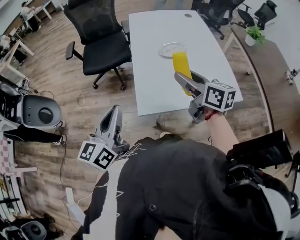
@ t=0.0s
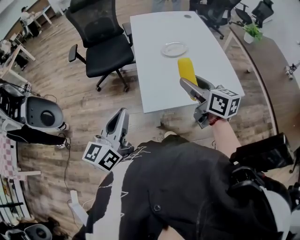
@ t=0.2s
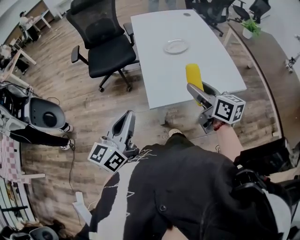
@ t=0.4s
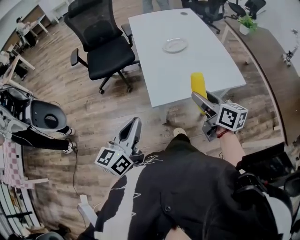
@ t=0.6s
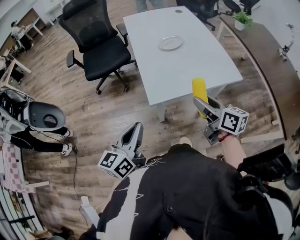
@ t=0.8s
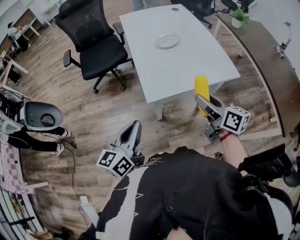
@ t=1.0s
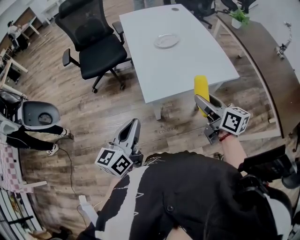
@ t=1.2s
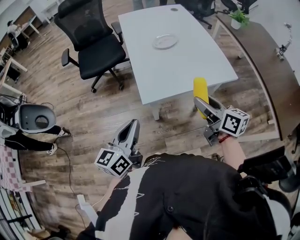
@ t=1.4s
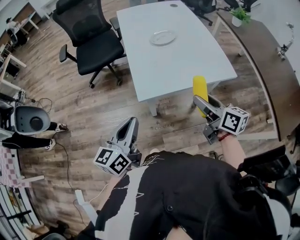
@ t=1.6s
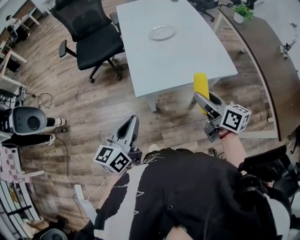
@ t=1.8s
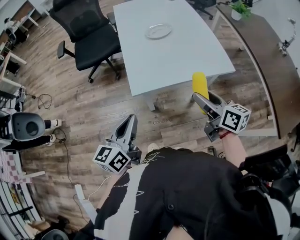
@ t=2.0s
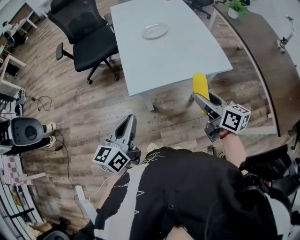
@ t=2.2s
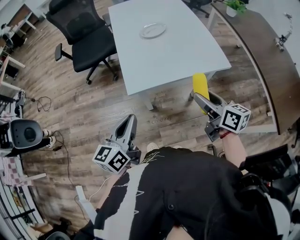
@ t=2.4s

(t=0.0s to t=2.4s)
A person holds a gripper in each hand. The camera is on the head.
t=0.0s - t=1.2s: The left gripper goes approximately 10 cm backward and downward; the right gripper goes approximately 15 cm backward.
t=1.2s - t=2.4s: Both grippers move to the right, roughly 5 cm.

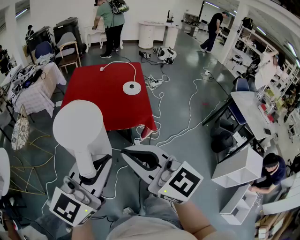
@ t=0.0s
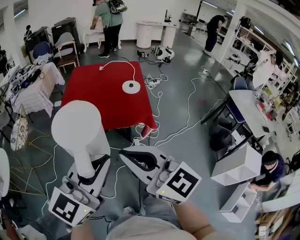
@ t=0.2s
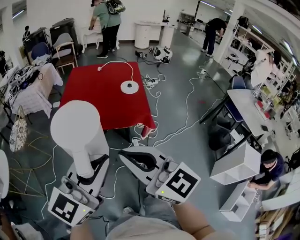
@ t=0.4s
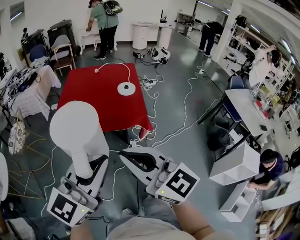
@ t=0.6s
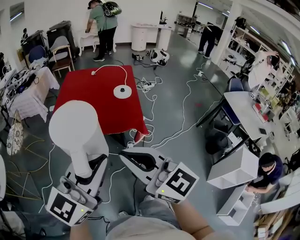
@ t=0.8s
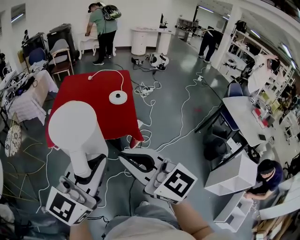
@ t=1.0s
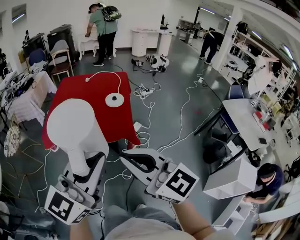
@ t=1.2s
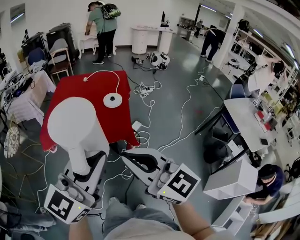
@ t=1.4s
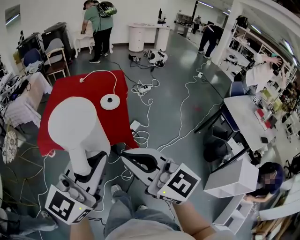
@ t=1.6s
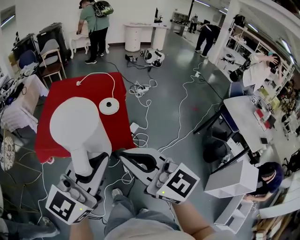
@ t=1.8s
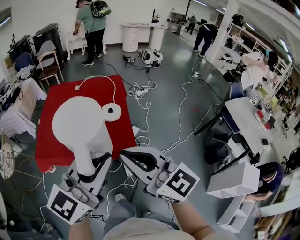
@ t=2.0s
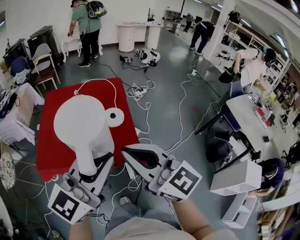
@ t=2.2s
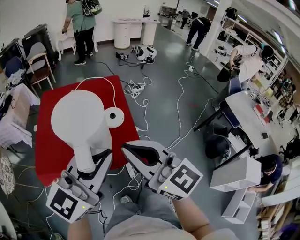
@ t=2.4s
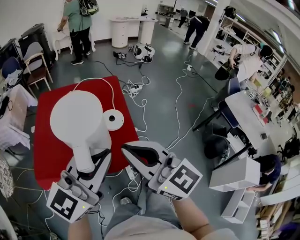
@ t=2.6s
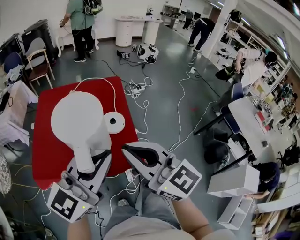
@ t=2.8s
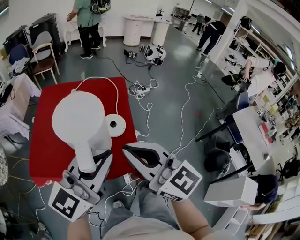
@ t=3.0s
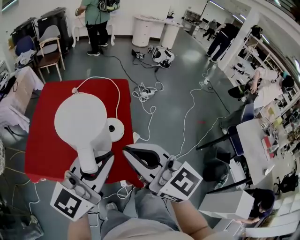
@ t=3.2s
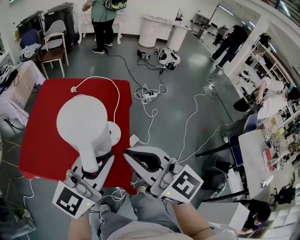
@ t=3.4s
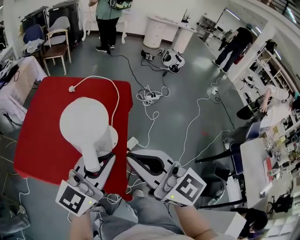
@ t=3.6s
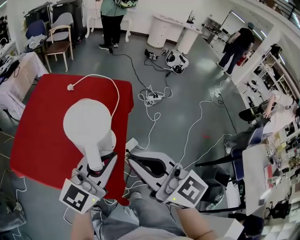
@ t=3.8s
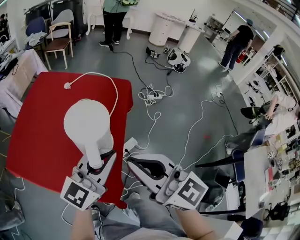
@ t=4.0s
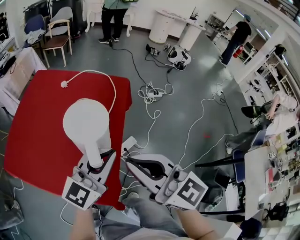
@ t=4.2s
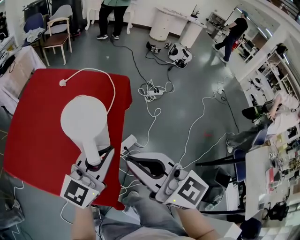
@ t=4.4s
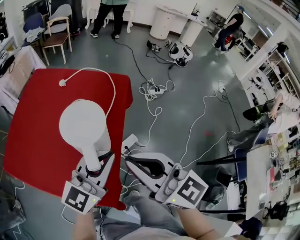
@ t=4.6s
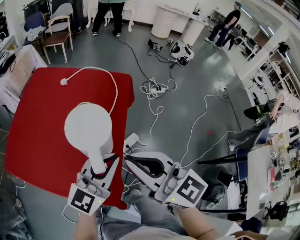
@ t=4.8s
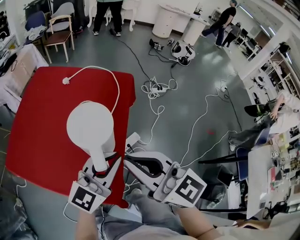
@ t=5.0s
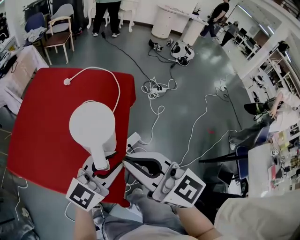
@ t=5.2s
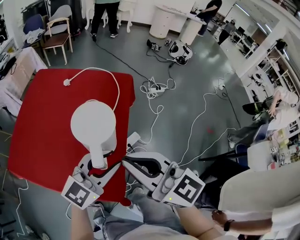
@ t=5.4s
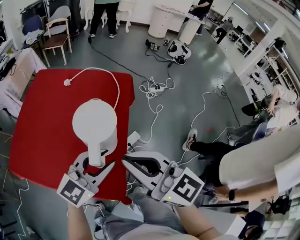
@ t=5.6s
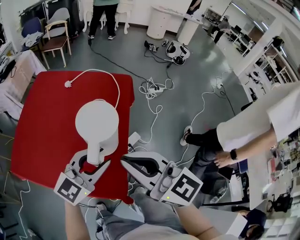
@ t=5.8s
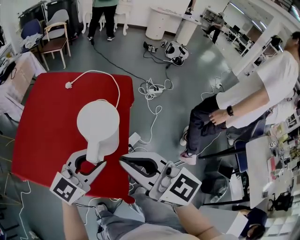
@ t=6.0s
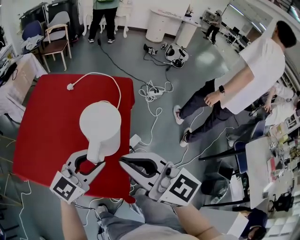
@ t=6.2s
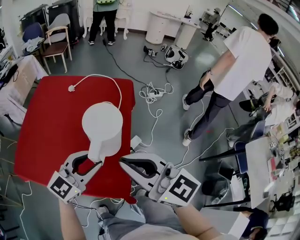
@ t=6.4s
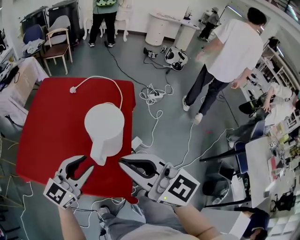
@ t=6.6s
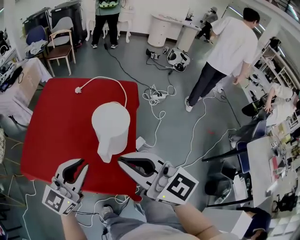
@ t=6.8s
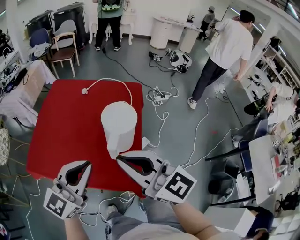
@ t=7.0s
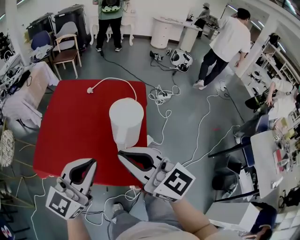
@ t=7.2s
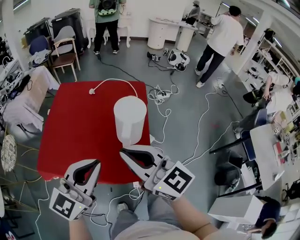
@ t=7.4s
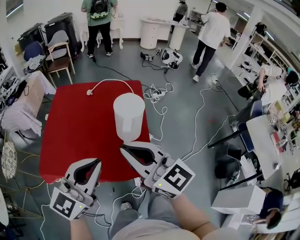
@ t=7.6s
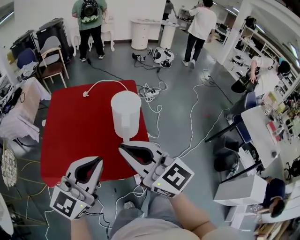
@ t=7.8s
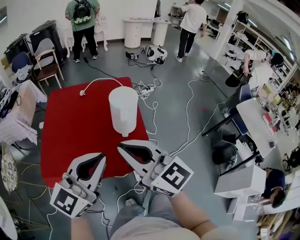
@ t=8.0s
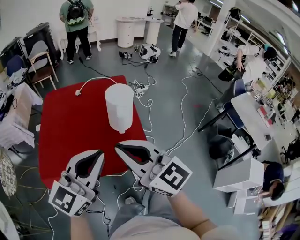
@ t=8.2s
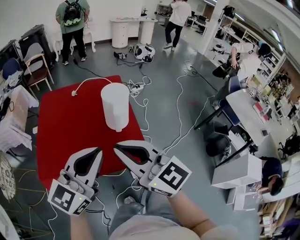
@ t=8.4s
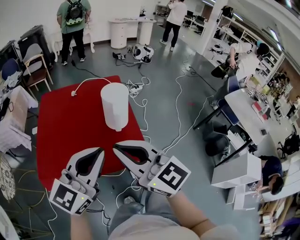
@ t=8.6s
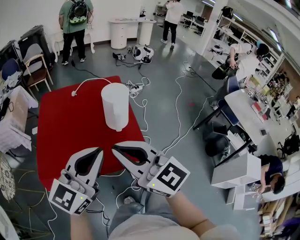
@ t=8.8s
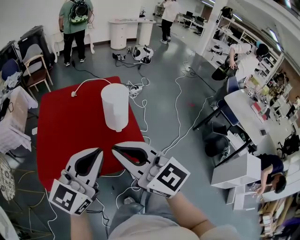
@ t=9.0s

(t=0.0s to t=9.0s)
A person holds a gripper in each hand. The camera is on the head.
t=0.0s - t=1.6s: The two grippers go approximately 20 cm to the right and forward.
t=1.6s - t=3.0s: Both grippers travel together forward, some 25 cm.
t=3.0s - t=4.4s: The right gripper shifts approximately 20 cm forward, to the right and downward. The left gripper moves forward, downward and to the right, about 30 cm.
t=4.4s - t=6.0s: The grippers both shift to the left by some 5 cm. The left gripper opens its fingers.
t=6.0s - t=7.6s: The right gripper goes approximately 15 cm to the left, backward and upward; the left gripper goes some 25 cm to the left, upward and backward, and closes its fingers.
t=7.6s - t=9.0s: The left gripper ends up about 5 cm from where it was; the right gripper moves backward, about 10 cm.

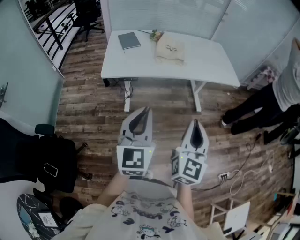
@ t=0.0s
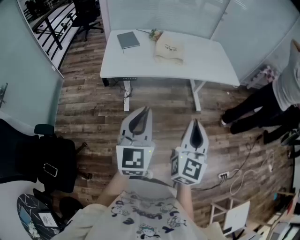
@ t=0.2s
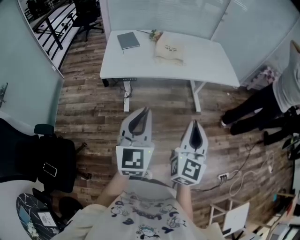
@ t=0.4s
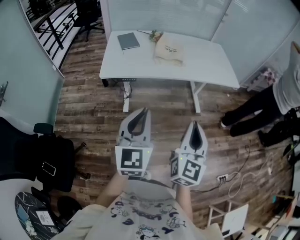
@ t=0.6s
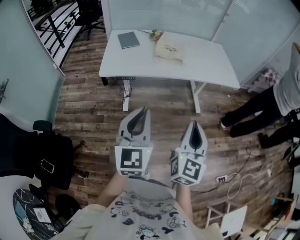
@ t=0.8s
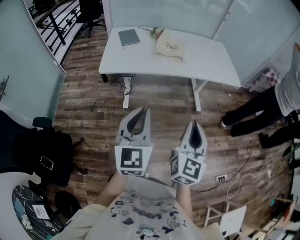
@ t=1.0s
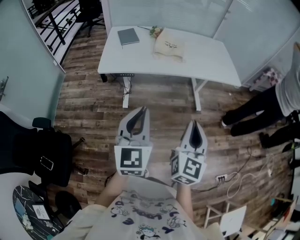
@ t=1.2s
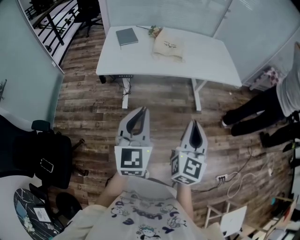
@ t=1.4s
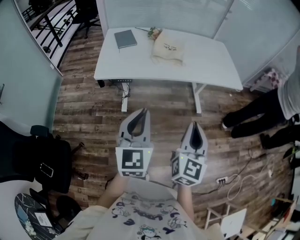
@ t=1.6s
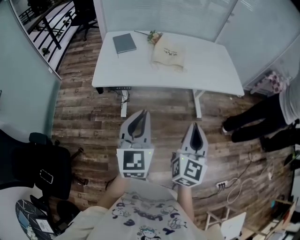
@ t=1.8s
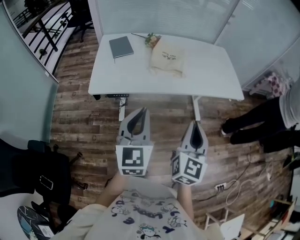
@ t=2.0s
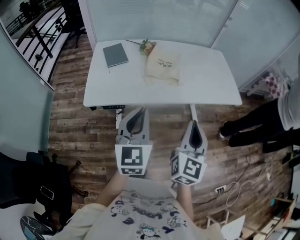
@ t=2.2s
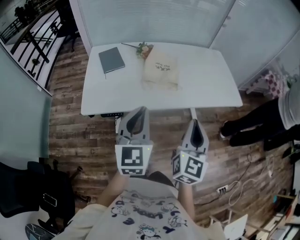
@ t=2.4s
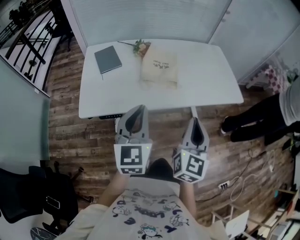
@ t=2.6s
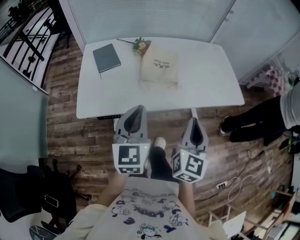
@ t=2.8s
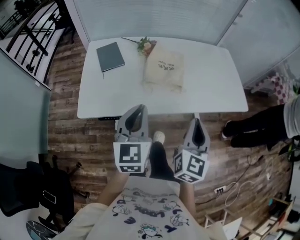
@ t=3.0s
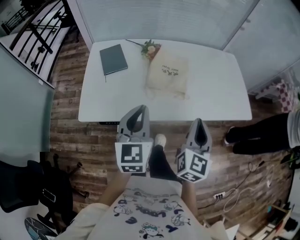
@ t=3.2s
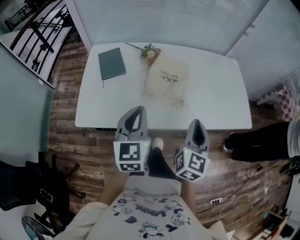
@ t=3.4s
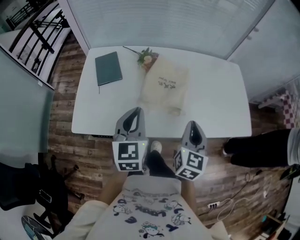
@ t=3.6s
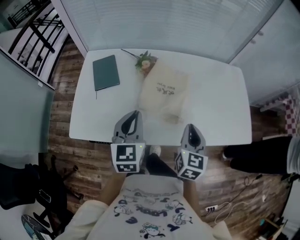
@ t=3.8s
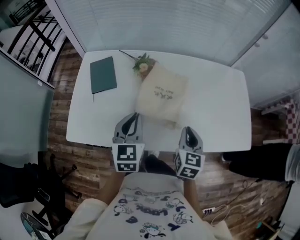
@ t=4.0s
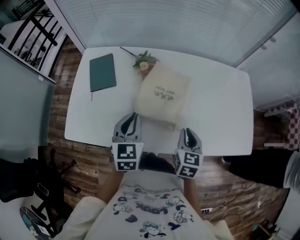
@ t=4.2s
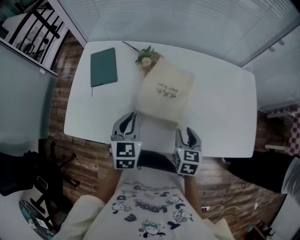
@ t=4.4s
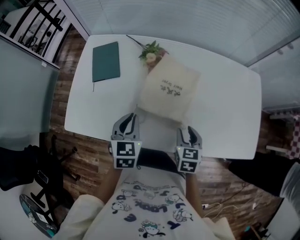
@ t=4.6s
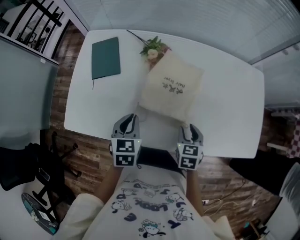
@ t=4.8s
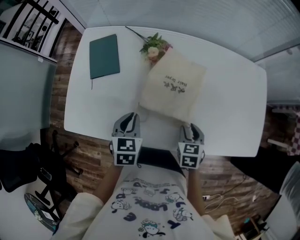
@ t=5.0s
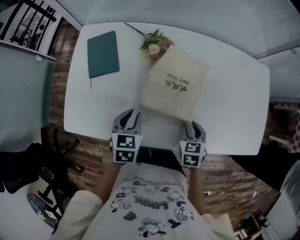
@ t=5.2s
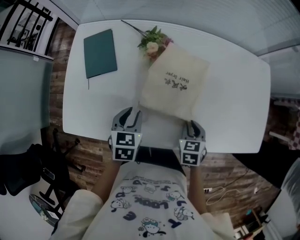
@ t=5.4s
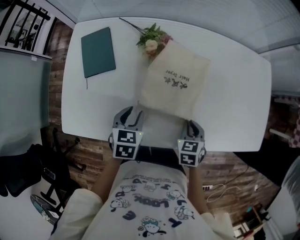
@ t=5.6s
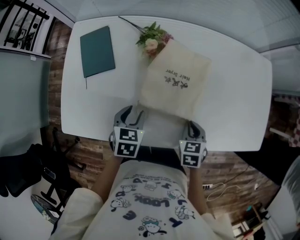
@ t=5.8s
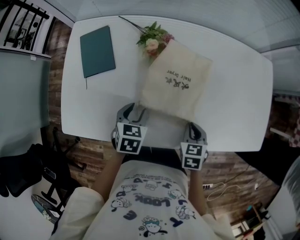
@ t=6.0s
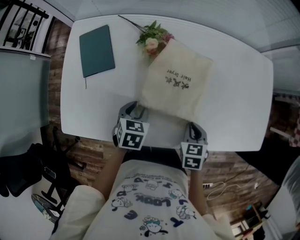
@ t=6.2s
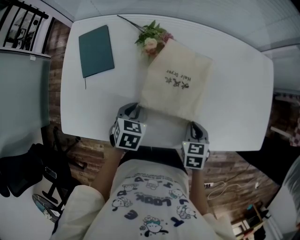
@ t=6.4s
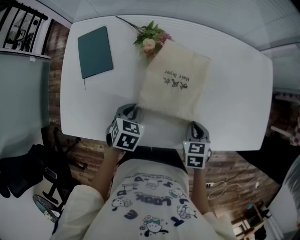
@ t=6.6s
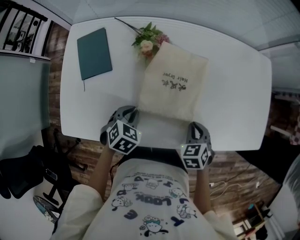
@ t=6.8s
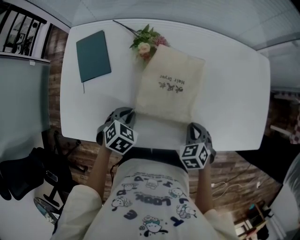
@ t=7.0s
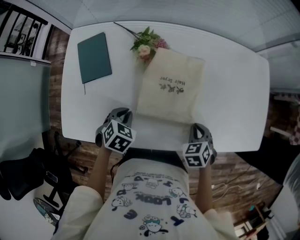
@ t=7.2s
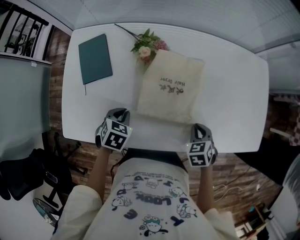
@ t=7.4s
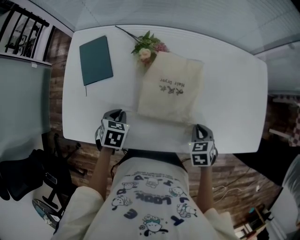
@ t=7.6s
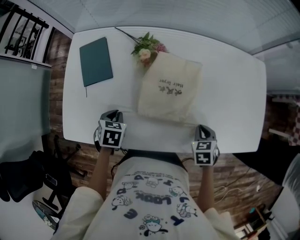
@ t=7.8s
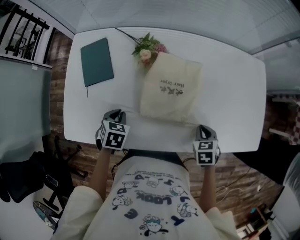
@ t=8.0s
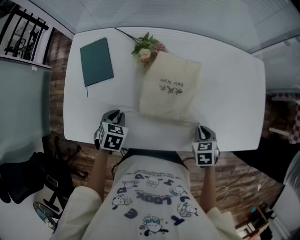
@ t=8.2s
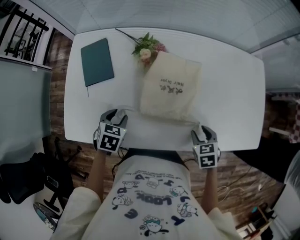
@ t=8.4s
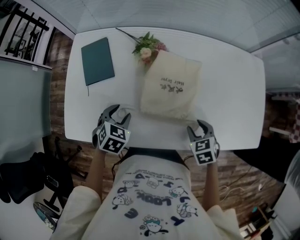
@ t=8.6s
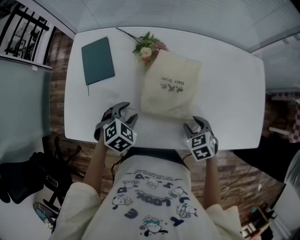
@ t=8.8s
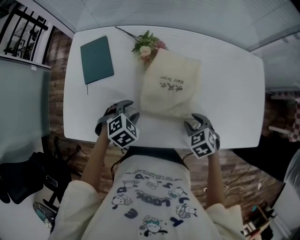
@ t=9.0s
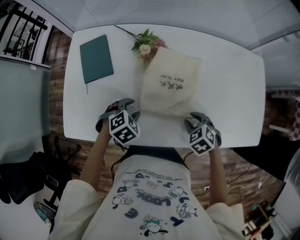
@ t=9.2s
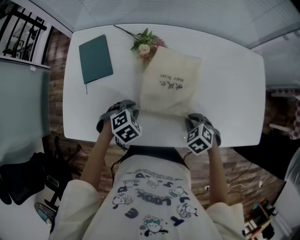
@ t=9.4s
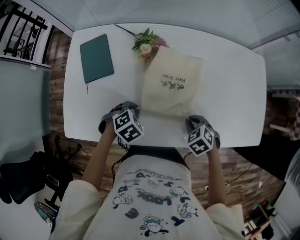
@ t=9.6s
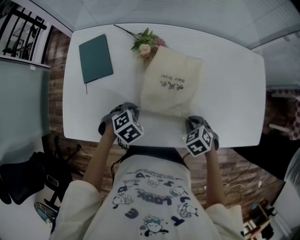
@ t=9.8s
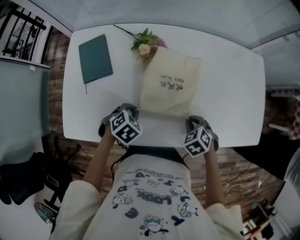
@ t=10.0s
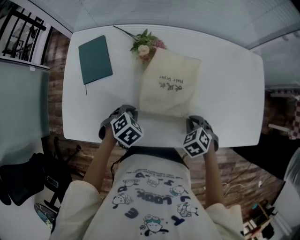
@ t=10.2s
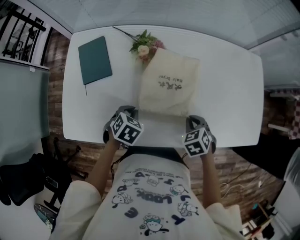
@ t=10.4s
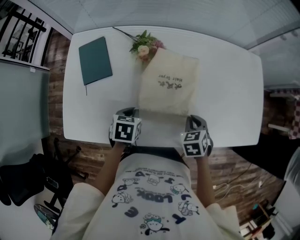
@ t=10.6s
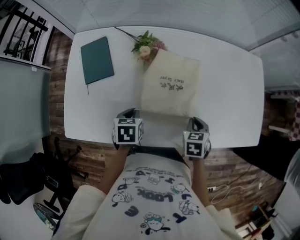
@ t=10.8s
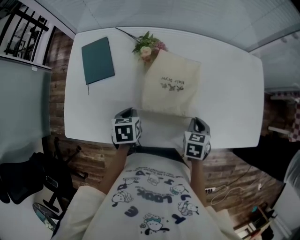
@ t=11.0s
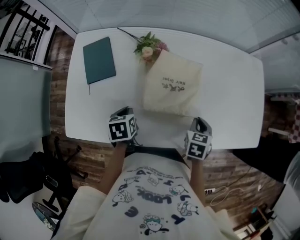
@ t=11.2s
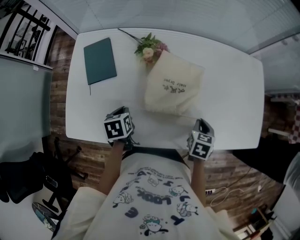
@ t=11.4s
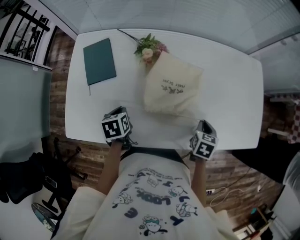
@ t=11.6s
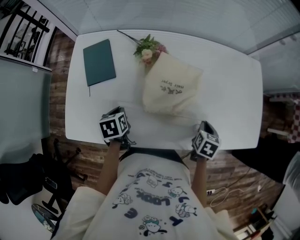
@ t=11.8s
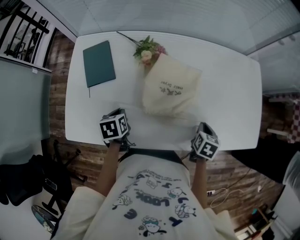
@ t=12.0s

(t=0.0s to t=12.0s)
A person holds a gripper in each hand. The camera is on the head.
t=0.0s - t=1.6s: The grippers both shift forward by some 5 cm.
t=1.6s - t=3.0s: Both grippers travel together forward, roughly 30 cm.
t=3.0s - t=4.4s: The two grippers go approximately 30 cm forward and downward. The left gripper swivels some 20 degrees. Meanwhile the right gripper tilts its fingers approximately 30 degrees downward, and opens.
t=4.4s - t=6.0s: The left gripper shifts some 15 cm downward, swivels roughly 30 degrees, and opens; the right gripper is displaced downward by some 10 cm, and closes.
t=6.0s - t=7.6s: The right gripper changes place by about 5 cm. Meanwhile the left gripper shifts some 5 cm to the left, and closes its fingers.
t=7.6s - t=9.0s: The right gripper moves some 5 cm, turns by about 20 degrees, and opens, while the left gripper is displaced to the right by approximately 5 cm, changes its angle by some 40 degrees, and opens its fingers.
t=9.0s - t=10.4s: The right gripper closes up, while the left gripper turns by some 20 degrees, and closes.
t=10.4s - t=12.0s: The left gripper travels to the left by some 10 cm, and rotates around the line of its fingers by about 50 degrees, counterclockwise from behind, while the right gripper moves to the right, about 10 cm, and rolls clockwise, seen from behind, by roughly 50 degrees.
